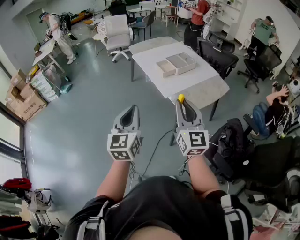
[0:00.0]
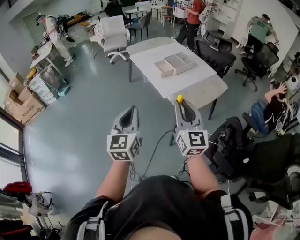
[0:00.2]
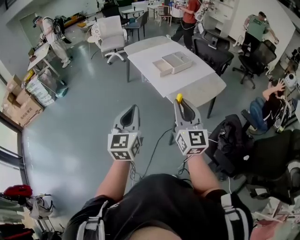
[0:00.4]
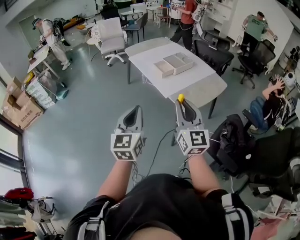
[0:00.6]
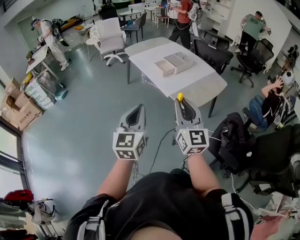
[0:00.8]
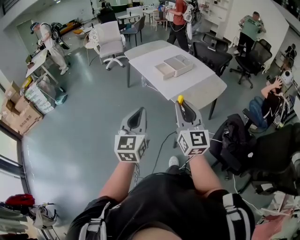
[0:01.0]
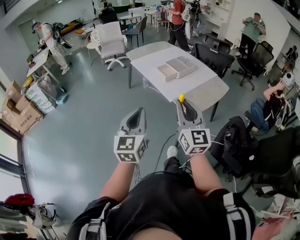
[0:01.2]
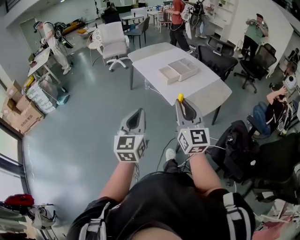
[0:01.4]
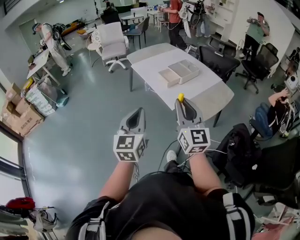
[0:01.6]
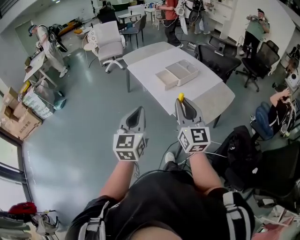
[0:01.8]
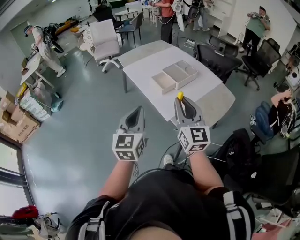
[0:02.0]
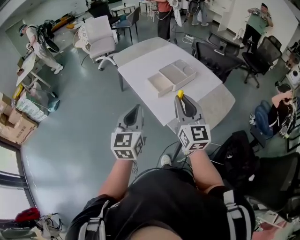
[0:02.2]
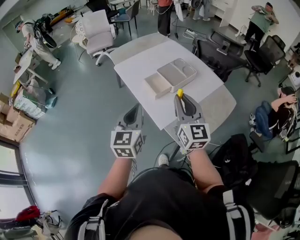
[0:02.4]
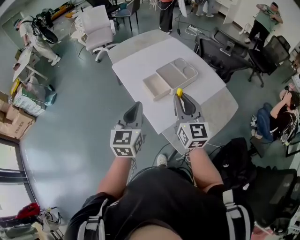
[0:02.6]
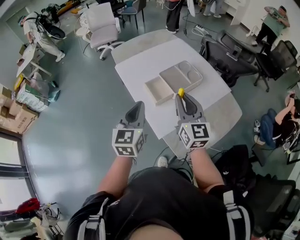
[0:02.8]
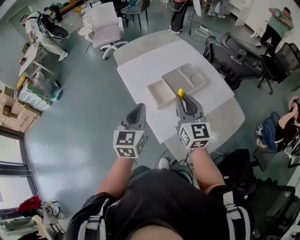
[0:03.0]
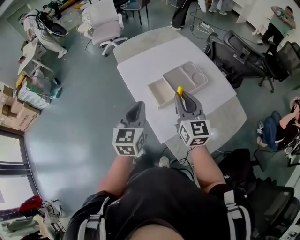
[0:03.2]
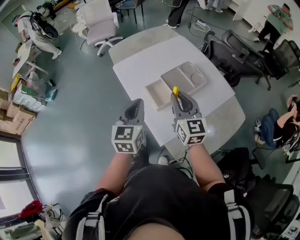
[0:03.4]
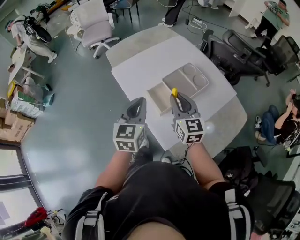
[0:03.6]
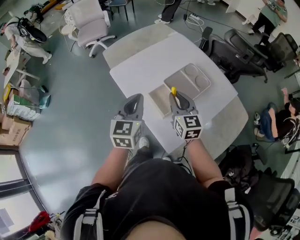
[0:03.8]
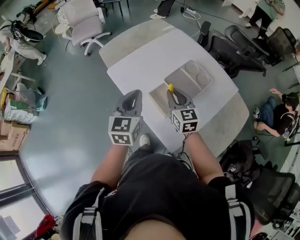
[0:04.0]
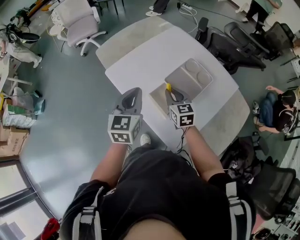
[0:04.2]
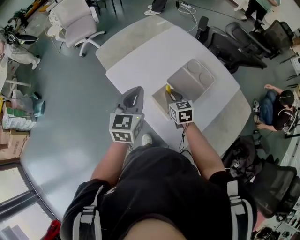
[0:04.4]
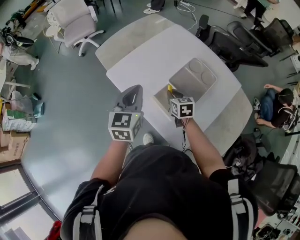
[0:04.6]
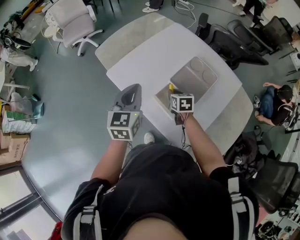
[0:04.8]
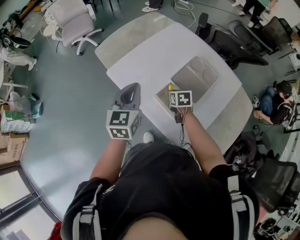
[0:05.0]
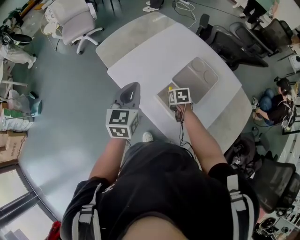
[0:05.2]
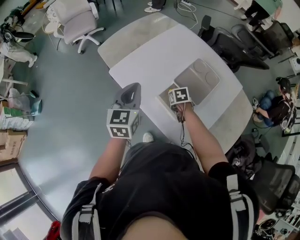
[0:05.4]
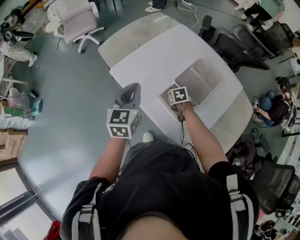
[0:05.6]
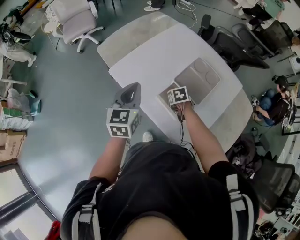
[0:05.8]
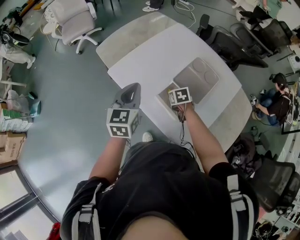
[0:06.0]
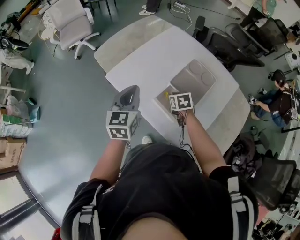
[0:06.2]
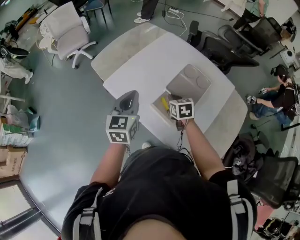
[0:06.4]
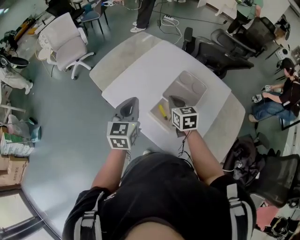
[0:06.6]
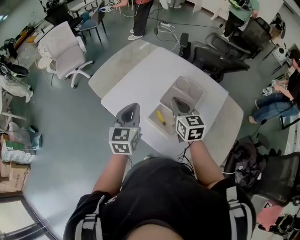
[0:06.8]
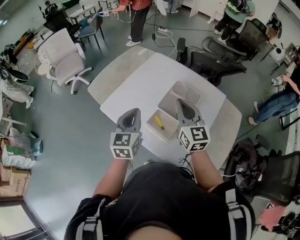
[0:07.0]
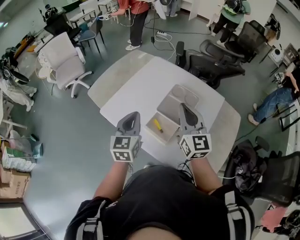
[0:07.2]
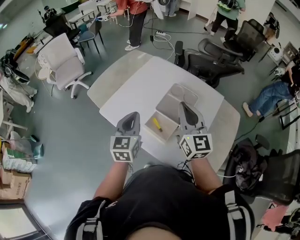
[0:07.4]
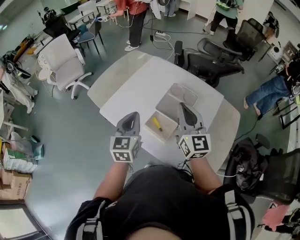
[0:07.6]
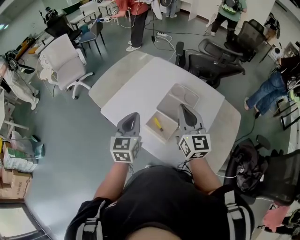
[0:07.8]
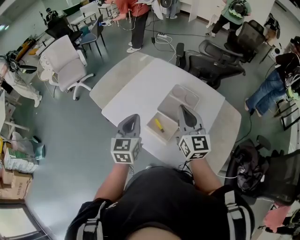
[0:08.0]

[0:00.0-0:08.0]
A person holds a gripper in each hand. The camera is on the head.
0:00.0 to 0:01.6: The right gripper heads forward and to the left, covering about 10 cm, while the left gripper heads forward, covering some 10 cm.
0:01.6 to 0:03.2: Both grippers are carried forward, approximately 40 cm.
0:03.2 to 0:04.8: The left gripper travels forward and to the left by roughly 25 cm; the right gripper moves downward and forward, roughly 35 cm, and angles its fingers downward, by some 40 degrees.
0:06.4 to 0:08.0: The right gripper goes some 25 cm upward, and angles its fingers upward, by about 50 degrees, while the left gripper heads to the right, covering roughly 5 cm.

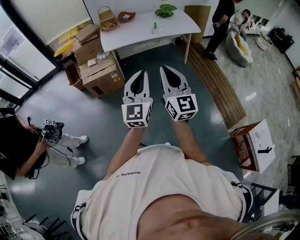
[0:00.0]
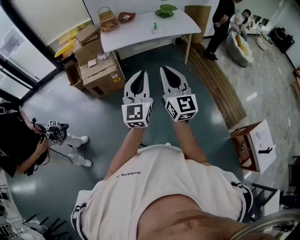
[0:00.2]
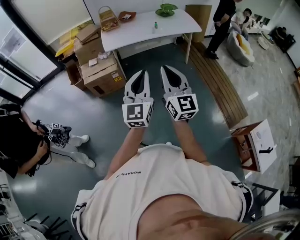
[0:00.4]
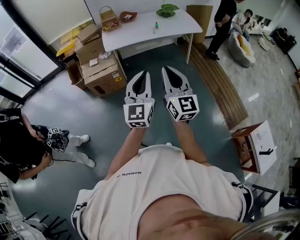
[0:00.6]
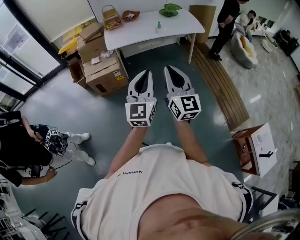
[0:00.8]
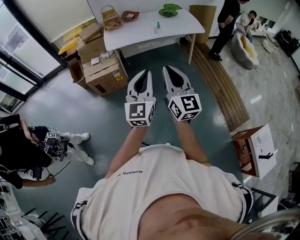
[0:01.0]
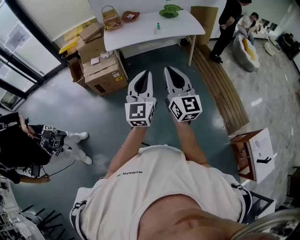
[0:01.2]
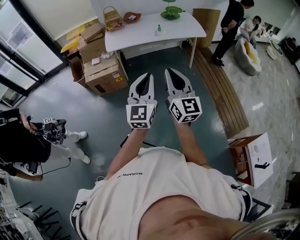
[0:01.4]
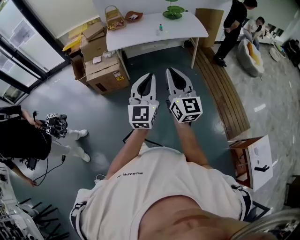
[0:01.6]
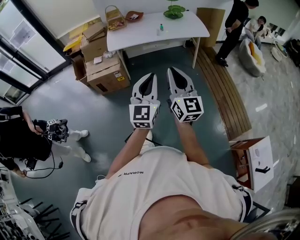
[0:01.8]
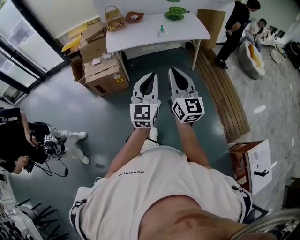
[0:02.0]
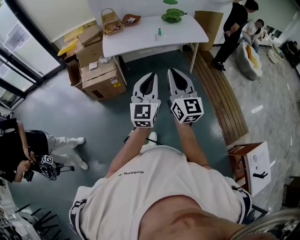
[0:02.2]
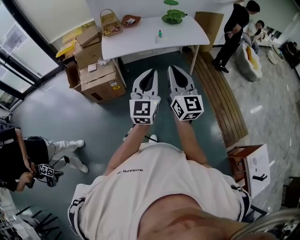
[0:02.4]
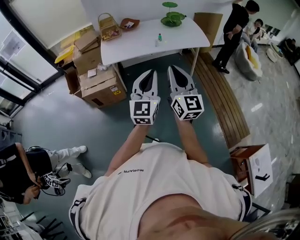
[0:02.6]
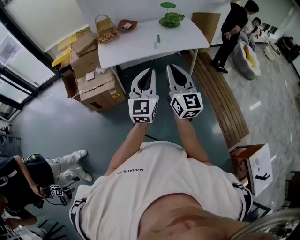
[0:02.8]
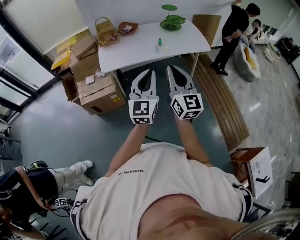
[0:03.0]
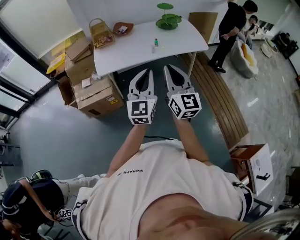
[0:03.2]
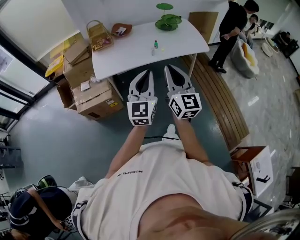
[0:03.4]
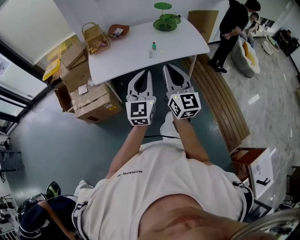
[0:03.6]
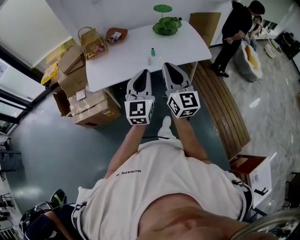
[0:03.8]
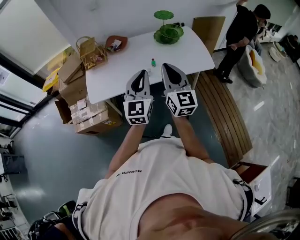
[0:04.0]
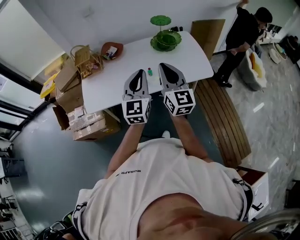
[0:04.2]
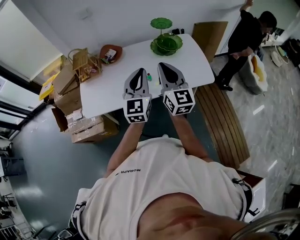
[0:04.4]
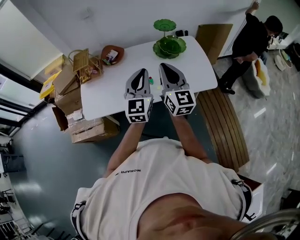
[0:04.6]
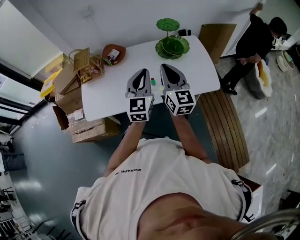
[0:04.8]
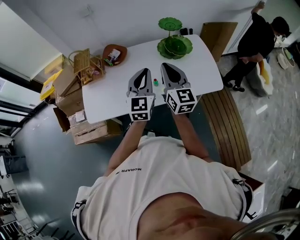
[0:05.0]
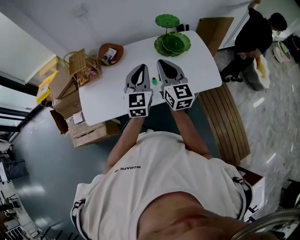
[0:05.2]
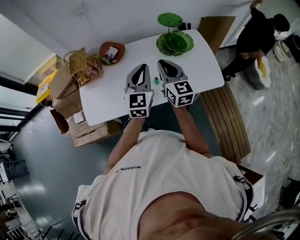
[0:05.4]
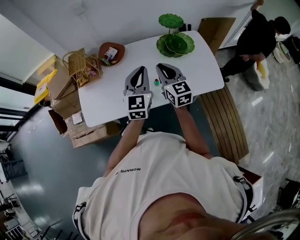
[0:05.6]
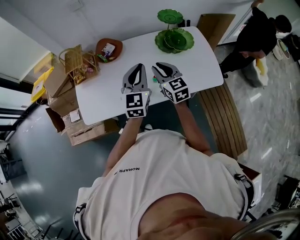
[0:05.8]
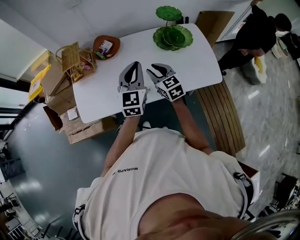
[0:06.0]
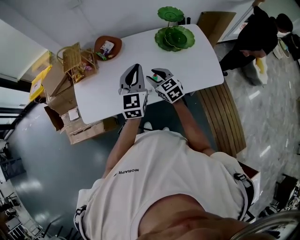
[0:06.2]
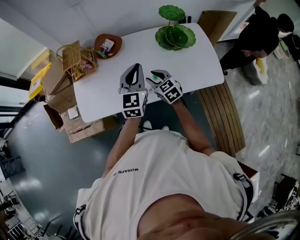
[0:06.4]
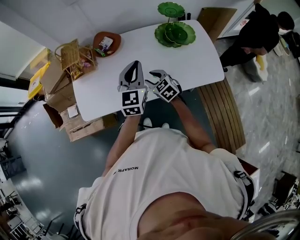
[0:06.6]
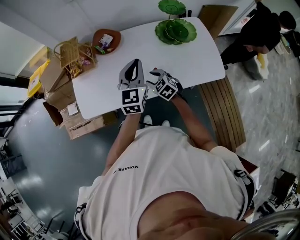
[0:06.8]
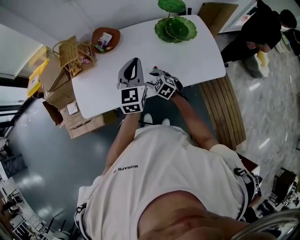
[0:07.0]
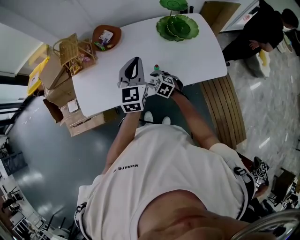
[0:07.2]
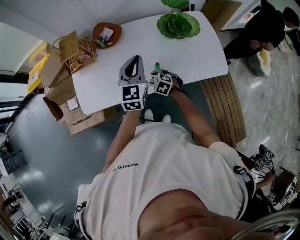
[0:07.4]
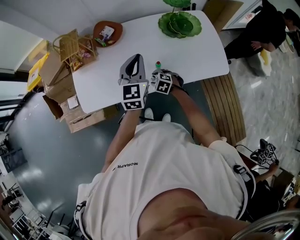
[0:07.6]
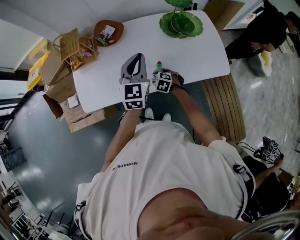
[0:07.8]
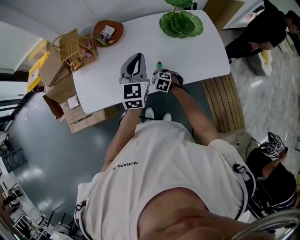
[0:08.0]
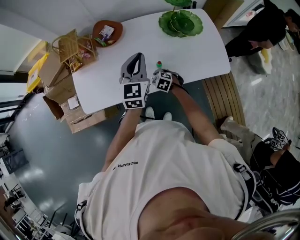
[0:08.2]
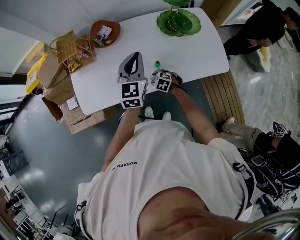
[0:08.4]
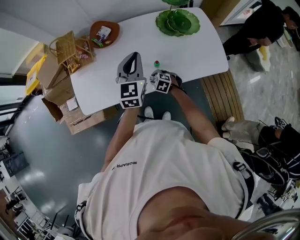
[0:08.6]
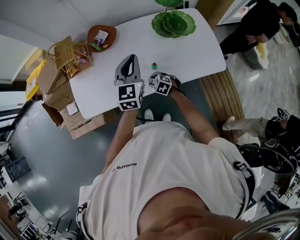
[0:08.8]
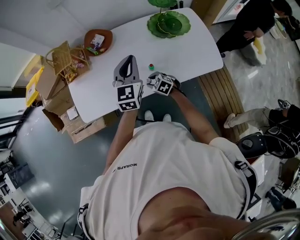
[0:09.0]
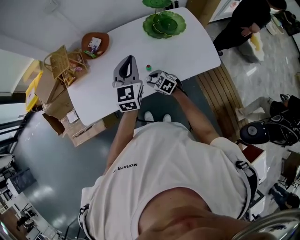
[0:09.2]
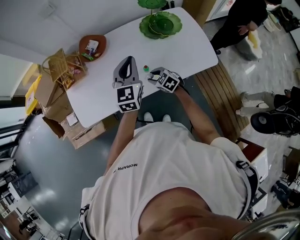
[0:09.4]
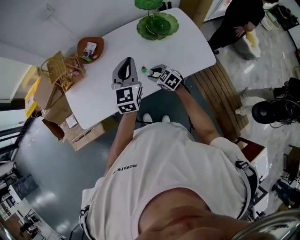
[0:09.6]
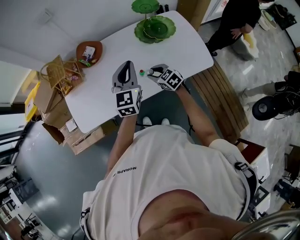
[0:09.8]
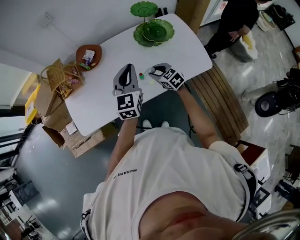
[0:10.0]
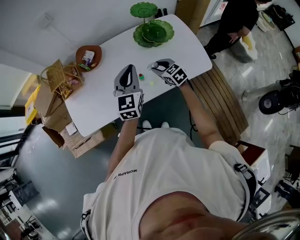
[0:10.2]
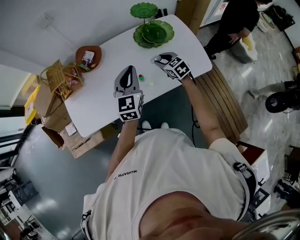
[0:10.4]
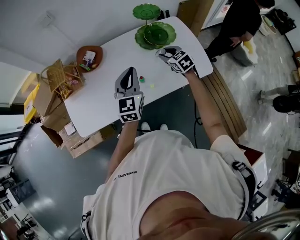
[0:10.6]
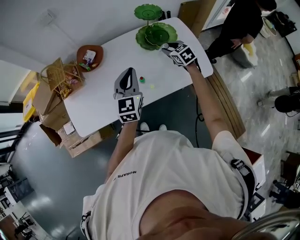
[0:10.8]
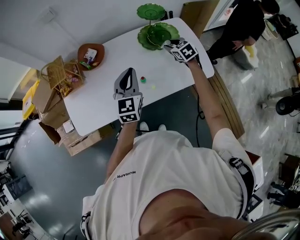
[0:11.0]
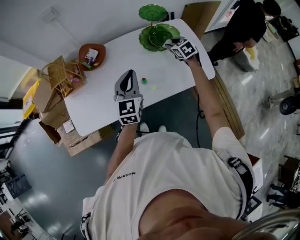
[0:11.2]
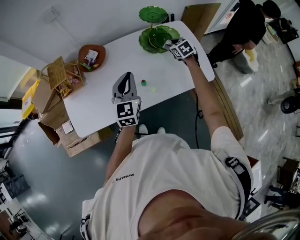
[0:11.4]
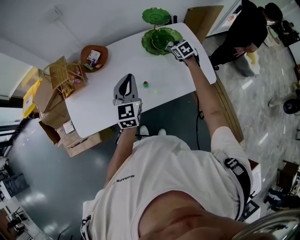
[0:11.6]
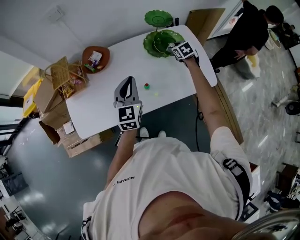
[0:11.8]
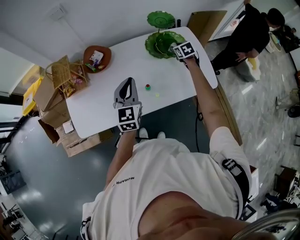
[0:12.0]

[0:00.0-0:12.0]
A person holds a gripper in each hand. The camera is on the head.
0:00.0 to 0:01.6: The grippers both shift to the right by approximately 10 cm.
0:01.6 to 0:03.0: The two grippers go approximately 30 cm forward.
0:03.0 to 0:04.4: The pair of grippers is taken forward, roughly 50 cm.
0:04.4 to 0:06.0: The right gripper heads downward, forward and to the left, covering about 25 cm, tips its fingers downward by about 30 degrees, and opens. Meanwhile the left gripper travels forward and downward by about 20 cm.
0:06.0 to 0:07.6: The right gripper travels downward by roughly 25 cm, angles its fingers downward, by some 40 degrees, and opens.
0:07.6 to 0:09.0: The grippers move only a little.
0:09.0 to 0:10.4: The left gripper is displaced to the right by about 5 cm. Meanwhile the right gripper shifts about 25 cm to the right, upward and forward, and swivels about 30 degrees.
0:10.4 to 0:12.0: The left gripper travels to the left by some 5 cm. The right gripper goes some 20 cm forward and to the right.

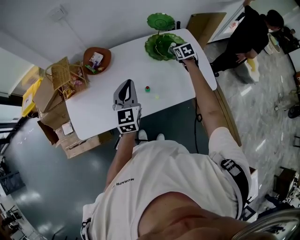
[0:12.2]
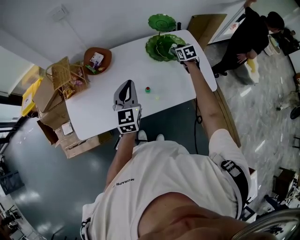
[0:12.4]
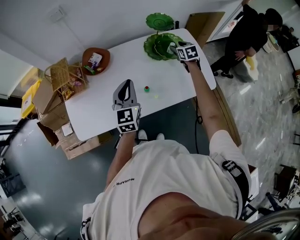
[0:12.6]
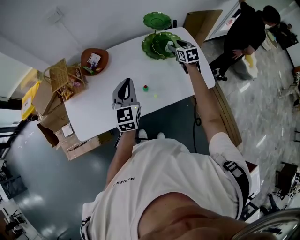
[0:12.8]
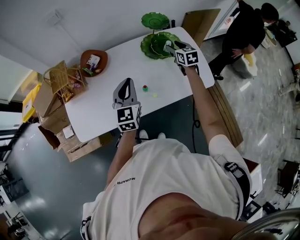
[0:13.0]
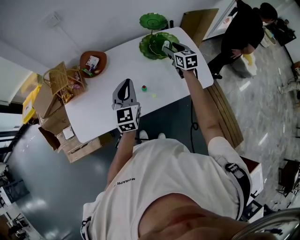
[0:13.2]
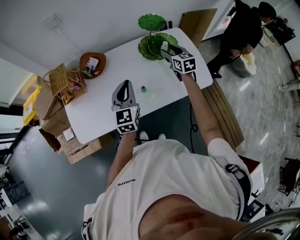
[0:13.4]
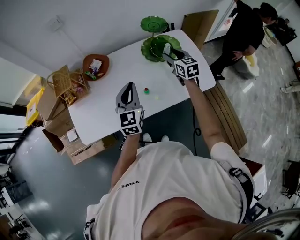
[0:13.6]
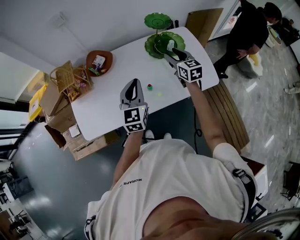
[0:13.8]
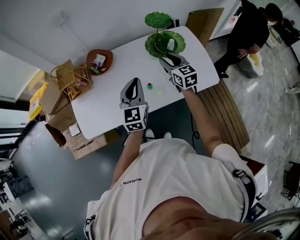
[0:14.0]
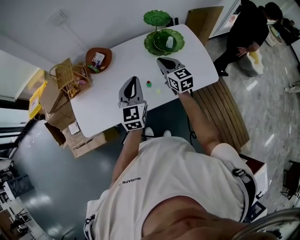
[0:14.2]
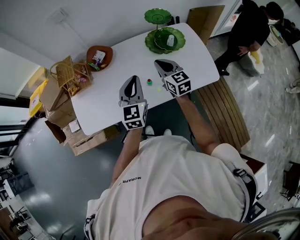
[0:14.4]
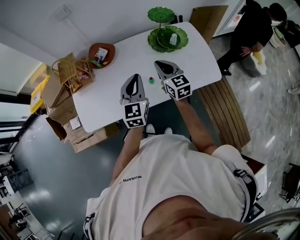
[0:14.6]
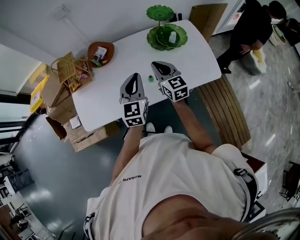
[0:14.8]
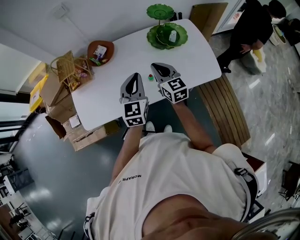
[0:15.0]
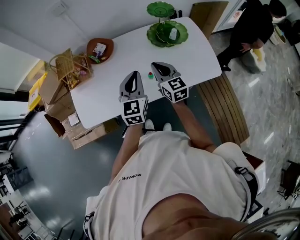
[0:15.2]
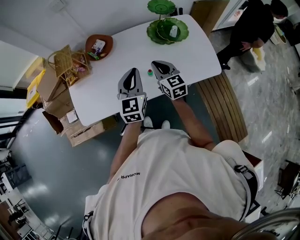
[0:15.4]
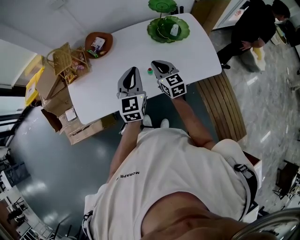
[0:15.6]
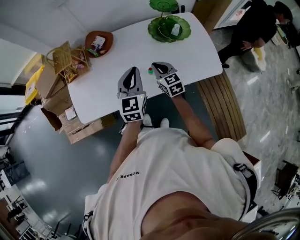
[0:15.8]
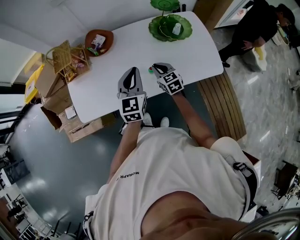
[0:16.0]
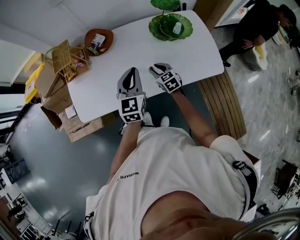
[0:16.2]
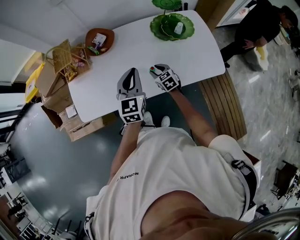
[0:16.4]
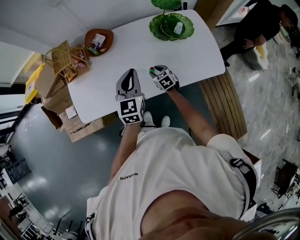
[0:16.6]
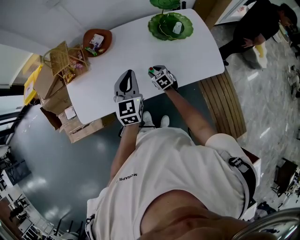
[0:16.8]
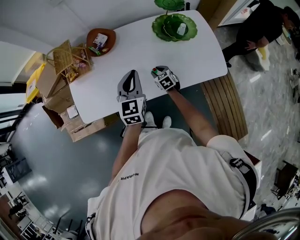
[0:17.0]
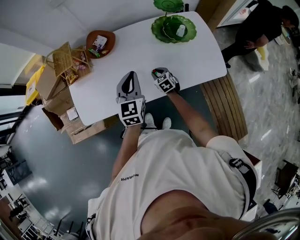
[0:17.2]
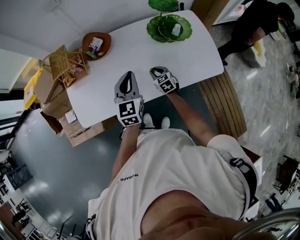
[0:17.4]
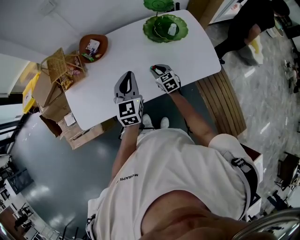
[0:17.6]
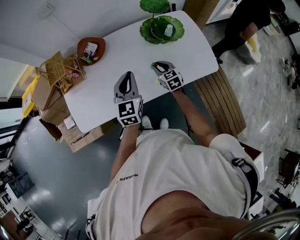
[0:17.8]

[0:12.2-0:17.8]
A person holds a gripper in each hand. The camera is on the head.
0:12.2 to 0:13.6: The right gripper travels upward and backward by some 15 cm, and changes its angle by some 30 degrees.
0:13.6 to 0:15.0: The right gripper travels to the left and backward by about 20 cm, and closes.
0:15.0 to 0:16.4: The right gripper moves downward, approximately 20 cm, swivels about 30 degrees, and opens.
0:16.4 to 0:17.8: The right gripper shifts some 10 cm to the right and upward.
